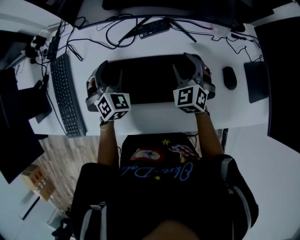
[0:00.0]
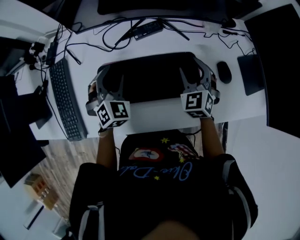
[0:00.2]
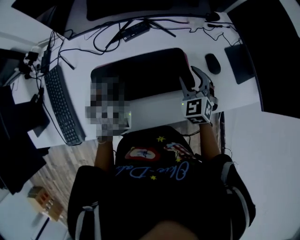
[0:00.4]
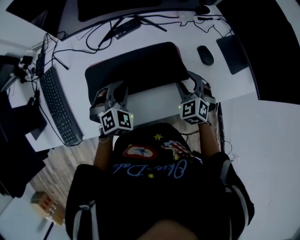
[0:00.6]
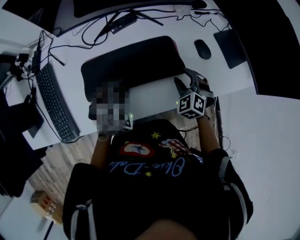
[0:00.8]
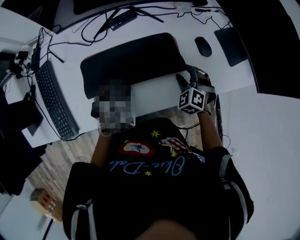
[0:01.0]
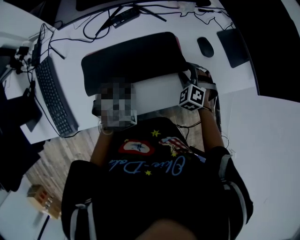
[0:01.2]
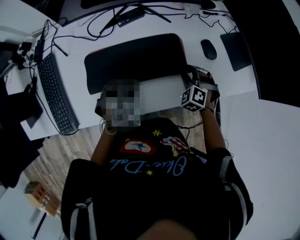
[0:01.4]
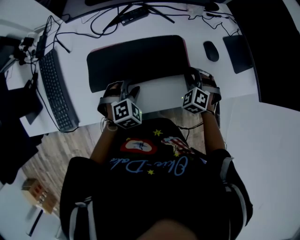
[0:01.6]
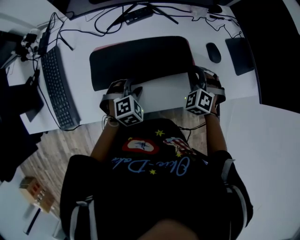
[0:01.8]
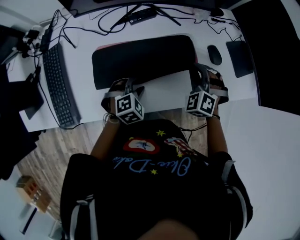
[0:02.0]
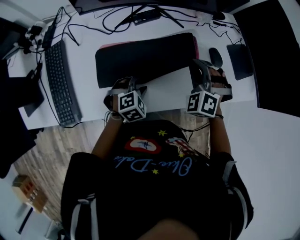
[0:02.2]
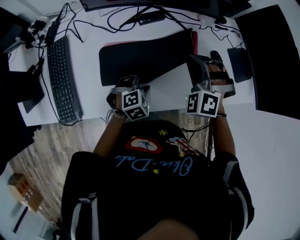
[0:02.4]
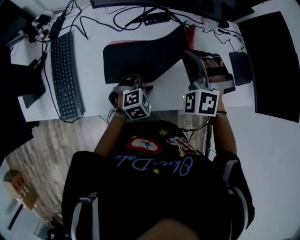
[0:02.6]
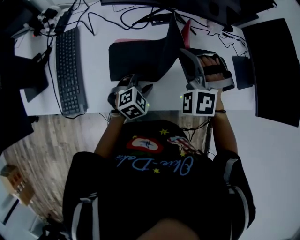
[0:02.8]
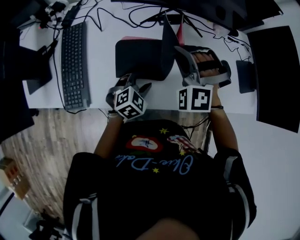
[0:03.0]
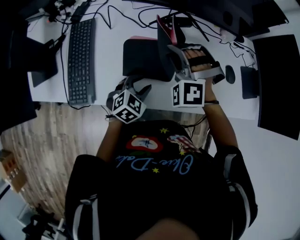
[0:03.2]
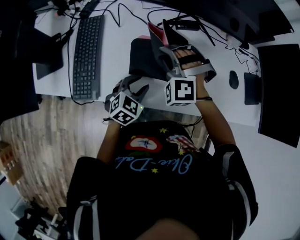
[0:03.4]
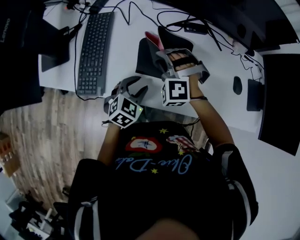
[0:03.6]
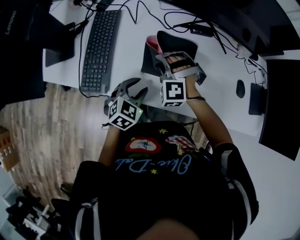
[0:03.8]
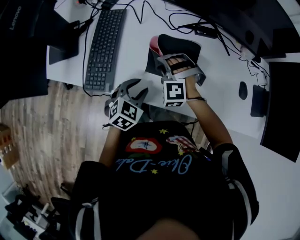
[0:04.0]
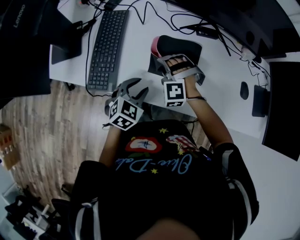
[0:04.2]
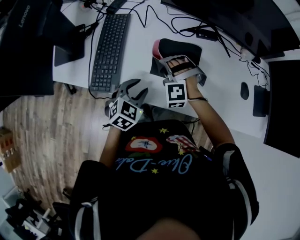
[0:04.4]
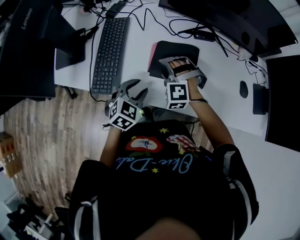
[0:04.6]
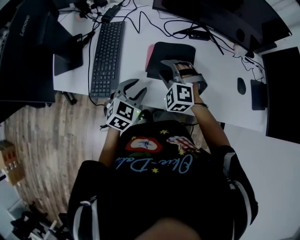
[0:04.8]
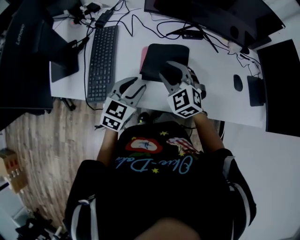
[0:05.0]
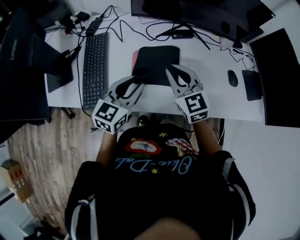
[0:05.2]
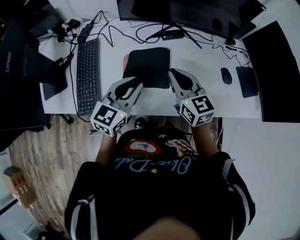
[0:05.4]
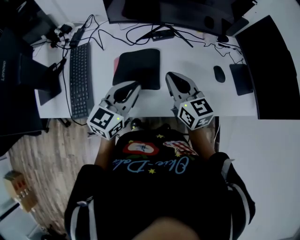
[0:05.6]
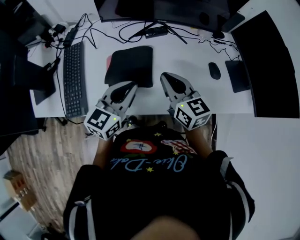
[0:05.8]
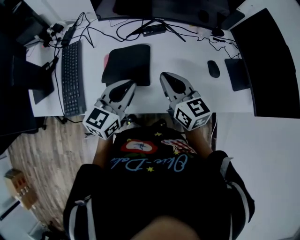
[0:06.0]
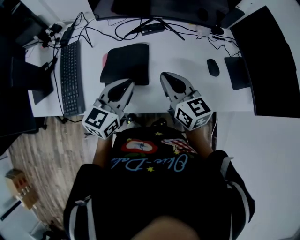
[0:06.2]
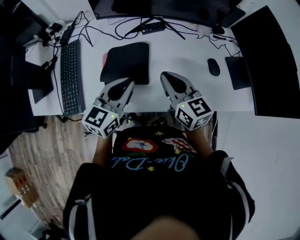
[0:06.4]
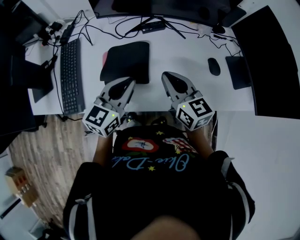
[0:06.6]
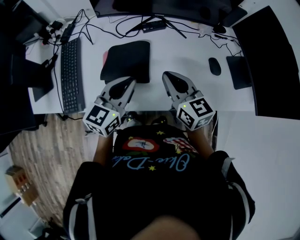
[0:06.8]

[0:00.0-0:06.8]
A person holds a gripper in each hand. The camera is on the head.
0:00.0 to 0:01.4: The left gripper moves some 20 cm, turns by approximately 40 degrees, and closes and opens again, while the right gripper moves about 20 cm, and changes its angle by roughly 30 degrees.
0:01.4 to 0:02.8: The right gripper heads to the left and upward, covering roughly 30 cm, changes its angle by approximately 40 degrees, and closes. Meanwhile the left gripper changes its angle by some 20 degrees.
0:02.8 to 0:04.0: The right gripper goes roughly 25 cm to the left and downward, and swivels about 30 degrees. The left gripper goes some 15 cm to the left and backward, and swivels approximately 30 degrees.
0:04.0 to 0:05.4: The right gripper heads upward and to the right, covering about 20 cm, rotates around the line of its fingers by roughly 90 degrees, clockwise from behind, and opens and closes again. Meanwhile the left gripper travels upward by about 15 cm, and angles its fingers upward, by some 30 degrees.
0:05.4 to 0:06.8: The grippers both shift to the right by about 10 cm.

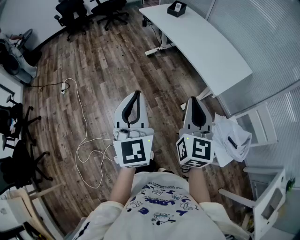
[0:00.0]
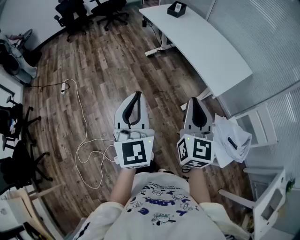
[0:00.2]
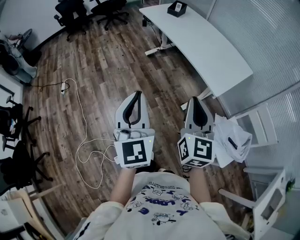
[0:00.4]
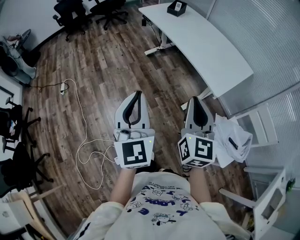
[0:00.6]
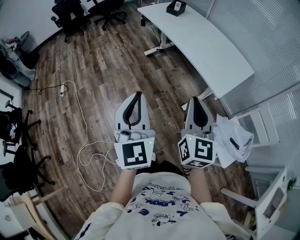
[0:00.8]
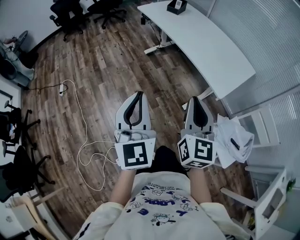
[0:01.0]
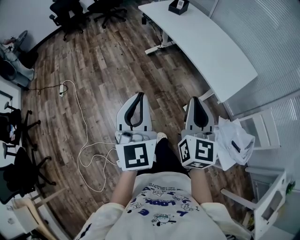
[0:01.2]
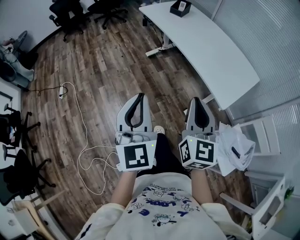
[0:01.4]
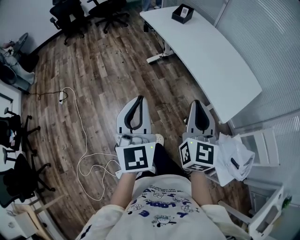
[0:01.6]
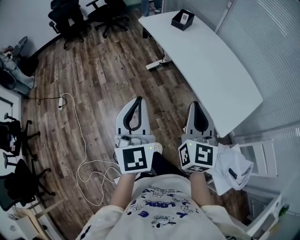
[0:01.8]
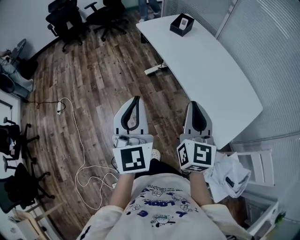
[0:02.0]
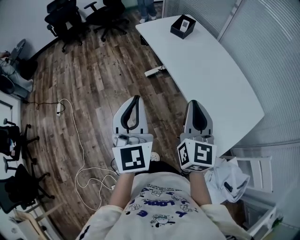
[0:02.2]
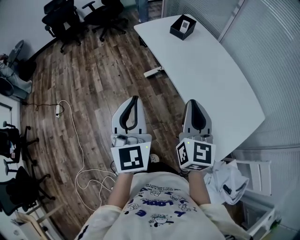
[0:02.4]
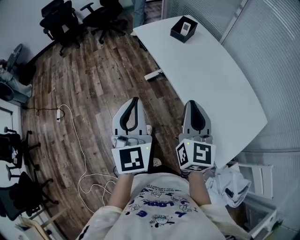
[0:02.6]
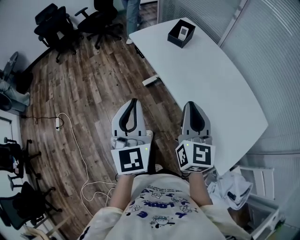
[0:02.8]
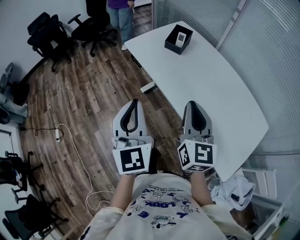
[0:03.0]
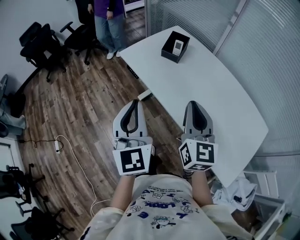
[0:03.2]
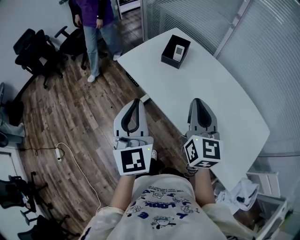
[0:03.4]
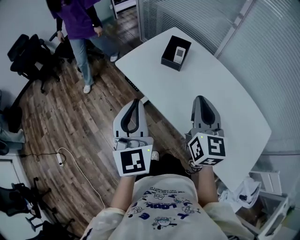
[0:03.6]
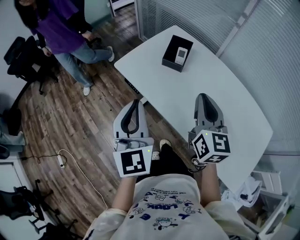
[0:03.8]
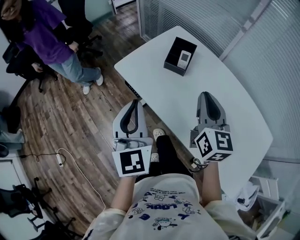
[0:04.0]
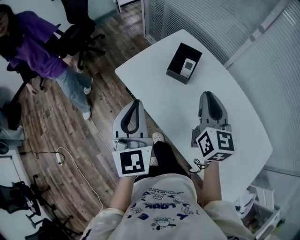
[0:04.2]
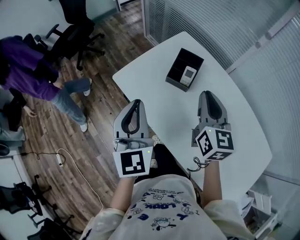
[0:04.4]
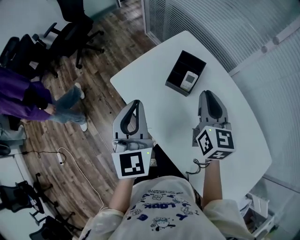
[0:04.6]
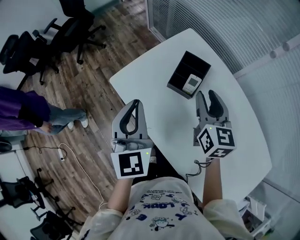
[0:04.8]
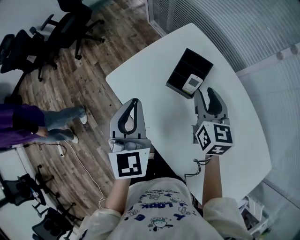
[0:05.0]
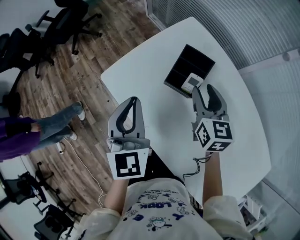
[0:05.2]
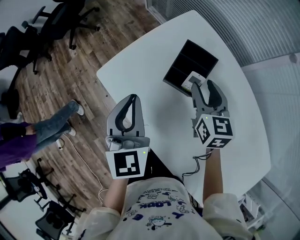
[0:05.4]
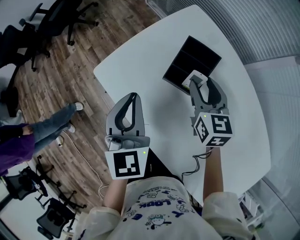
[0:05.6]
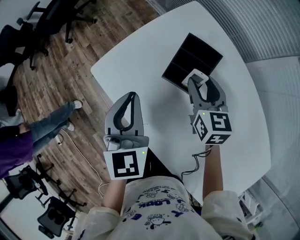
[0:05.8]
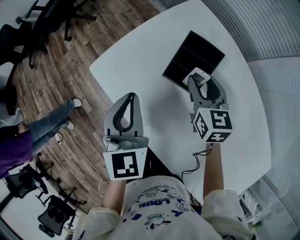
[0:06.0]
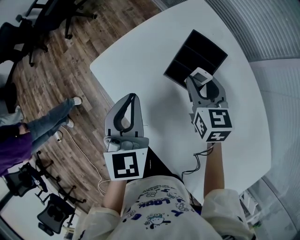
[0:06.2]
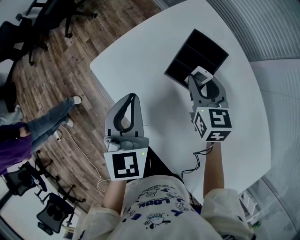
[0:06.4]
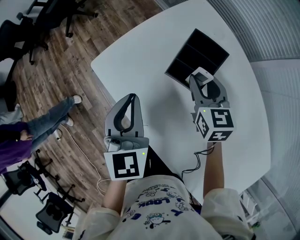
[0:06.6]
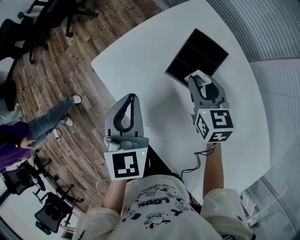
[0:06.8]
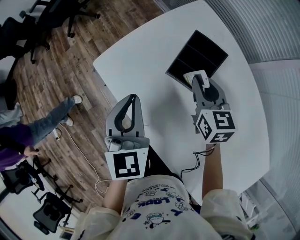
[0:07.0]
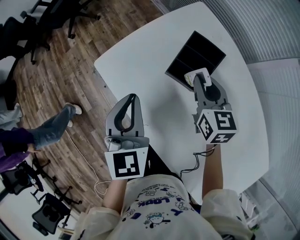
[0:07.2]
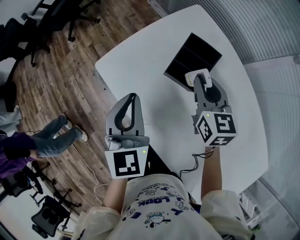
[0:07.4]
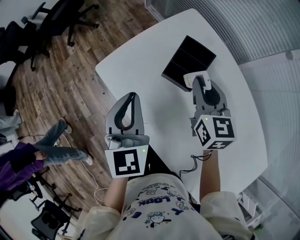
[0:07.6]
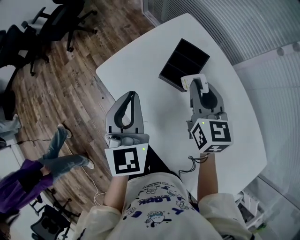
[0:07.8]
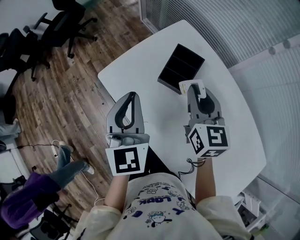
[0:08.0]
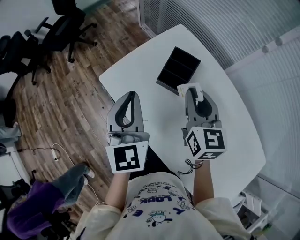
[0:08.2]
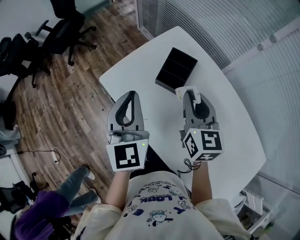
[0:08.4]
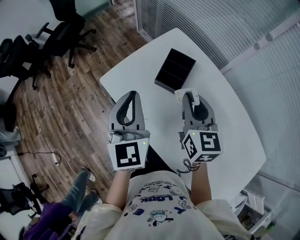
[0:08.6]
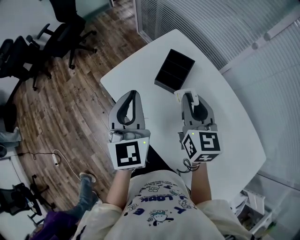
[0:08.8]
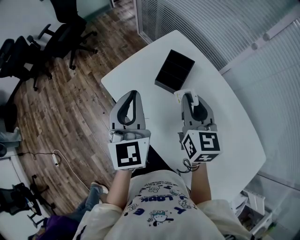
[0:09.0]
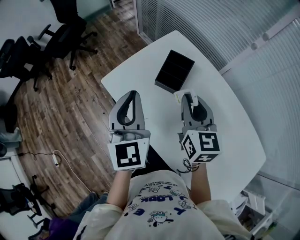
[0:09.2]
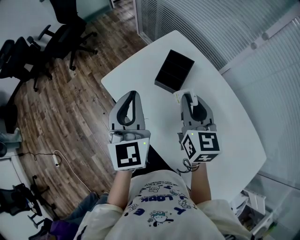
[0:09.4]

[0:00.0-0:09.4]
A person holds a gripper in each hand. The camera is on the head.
0:00.0 to 0:01.6: Both grippers travel together forward, approximately 20 cm.
0:01.6 to 0:03.2: The two grippers travel together, forward, roughly 50 cm.
0:03.2 to 0:04.8: The grippers both shift forward by roughly 40 cm. The right gripper opens.
0:04.8 to 0:06.2: Both grippers move downward and forward, about 15 cm.
0:06.2 to 0:07.8: The right gripper moves upward and backward, approximately 15 cm, and closes its fingers. The left gripper heads upward, covering about 10 cm.
0:07.8 to 0:09.4: The left gripper travels upward by about 10 cm, while the right gripper goes approximately 10 cm backward and upward.

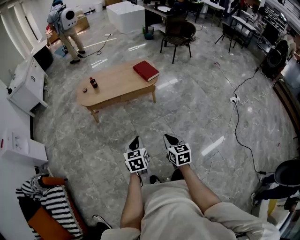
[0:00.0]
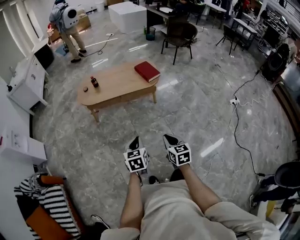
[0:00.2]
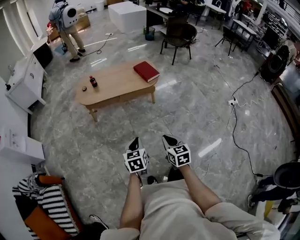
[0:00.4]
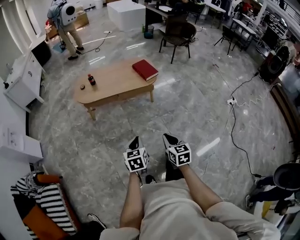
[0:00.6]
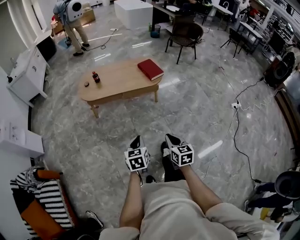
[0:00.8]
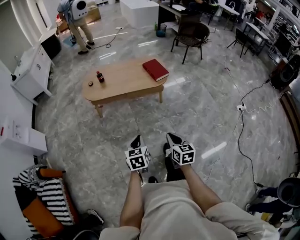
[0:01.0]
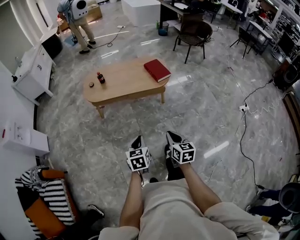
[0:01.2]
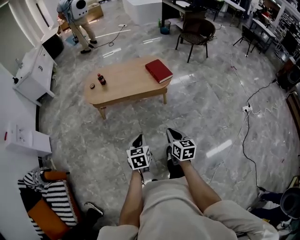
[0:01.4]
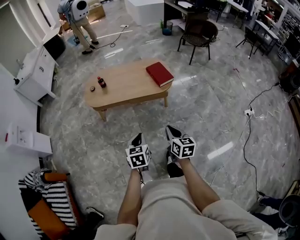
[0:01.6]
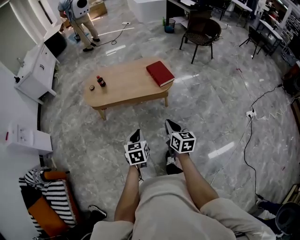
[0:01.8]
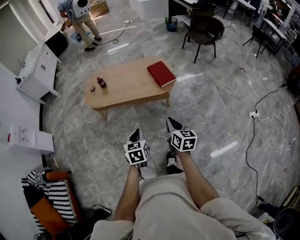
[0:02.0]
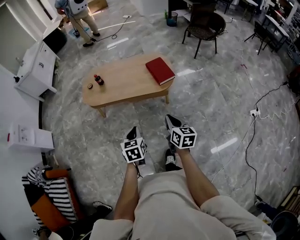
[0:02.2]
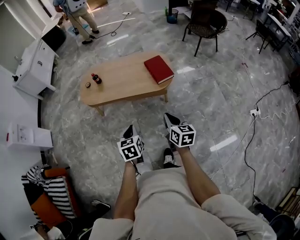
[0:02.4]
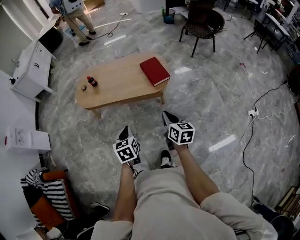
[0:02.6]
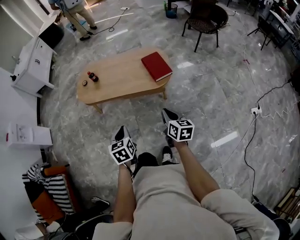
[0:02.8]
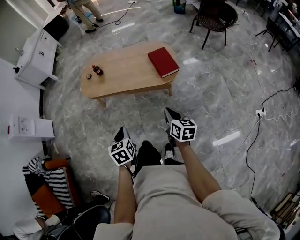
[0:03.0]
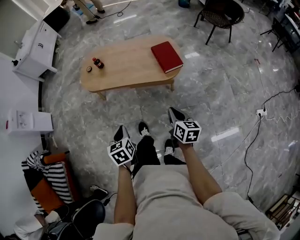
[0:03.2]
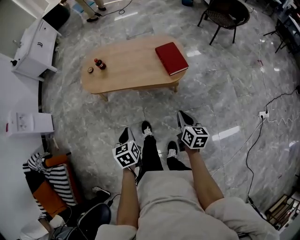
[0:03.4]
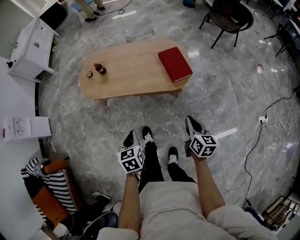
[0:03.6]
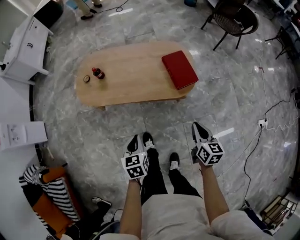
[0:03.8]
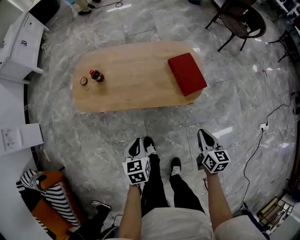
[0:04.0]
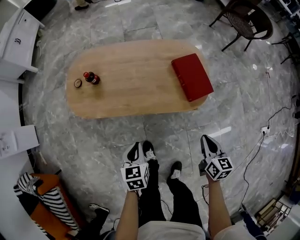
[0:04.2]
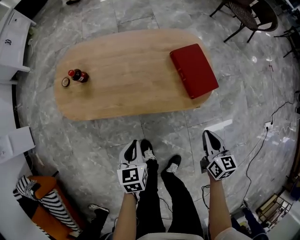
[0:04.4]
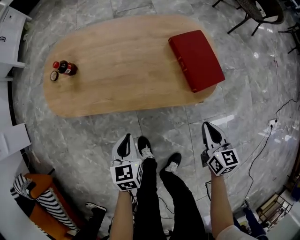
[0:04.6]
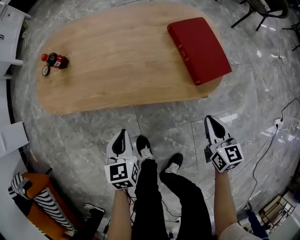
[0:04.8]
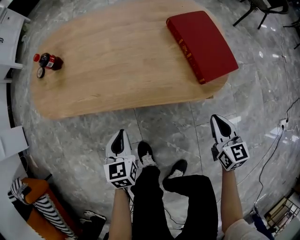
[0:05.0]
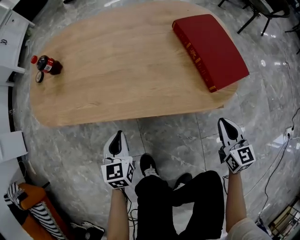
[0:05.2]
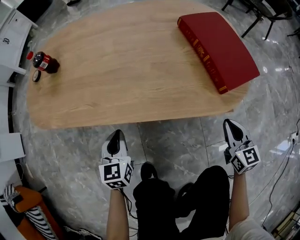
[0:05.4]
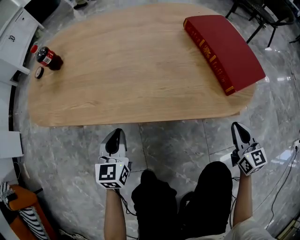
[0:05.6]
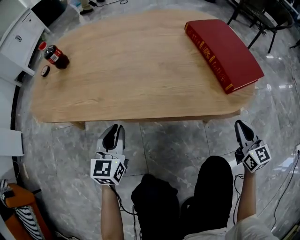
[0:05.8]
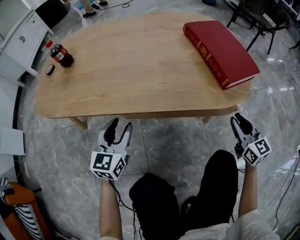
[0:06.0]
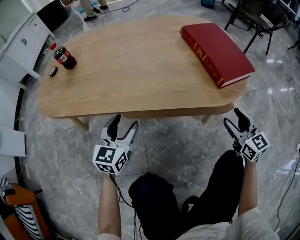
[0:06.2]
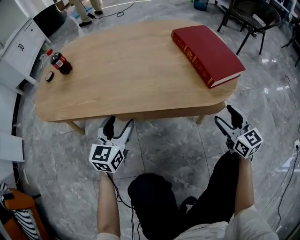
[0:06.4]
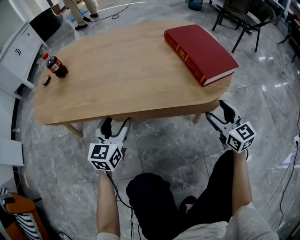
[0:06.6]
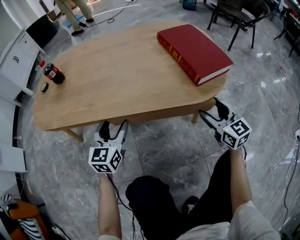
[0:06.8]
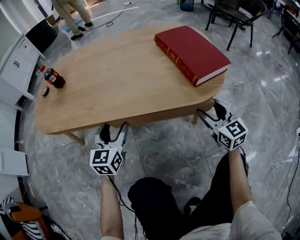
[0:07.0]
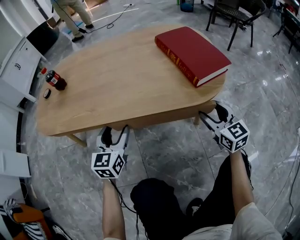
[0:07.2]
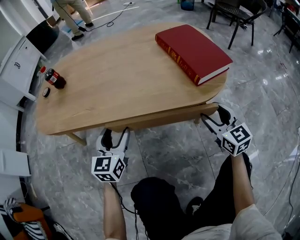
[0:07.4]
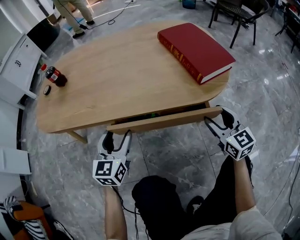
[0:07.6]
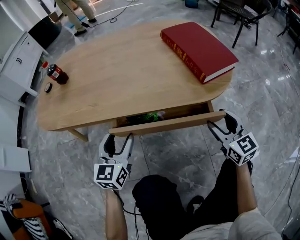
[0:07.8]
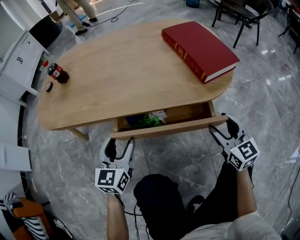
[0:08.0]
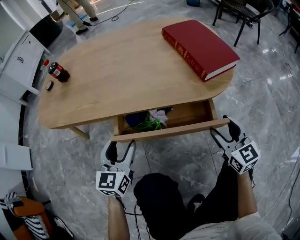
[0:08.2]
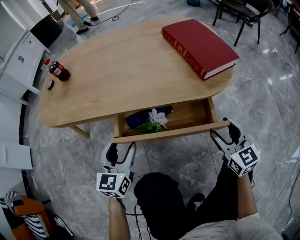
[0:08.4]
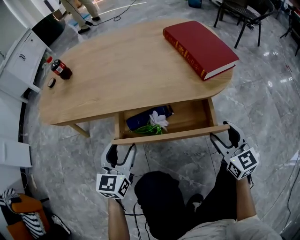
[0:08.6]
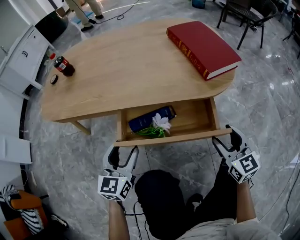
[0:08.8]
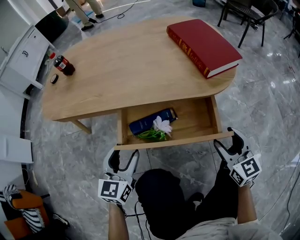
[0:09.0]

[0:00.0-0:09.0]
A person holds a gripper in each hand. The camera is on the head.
0:00.0 to 0:01.6: Both grippers travel together forward, some 20 cm.
0:01.6 to 0:03.0: The left gripper travels forward by some 10 cm, while the right gripper shifts approximately 20 cm forward and to the right.
0:03.0 to 0:04.4: Both grippers travel together forward and downward, about 35 cm.
0:04.4 to 0:06.0: Both grippers travel together downward, about 25 cm. The right gripper changes its angle by some 30 degrees. The left gripper turns by about 30 degrees, and opens up.
0:06.0 to 0:07.6: The right gripper opens; the left gripper opens up.
0:07.6 to 0:09.0: The grippers both shift backward by some 10 cm.
